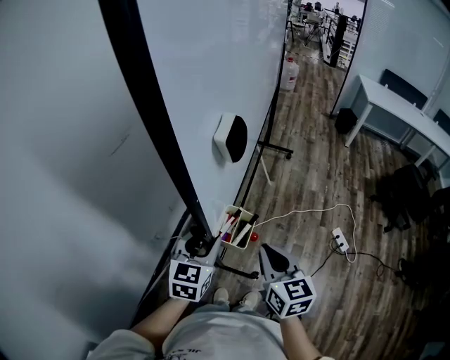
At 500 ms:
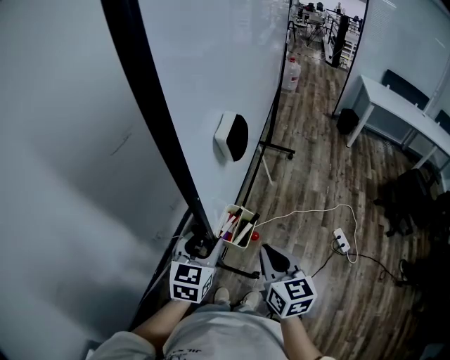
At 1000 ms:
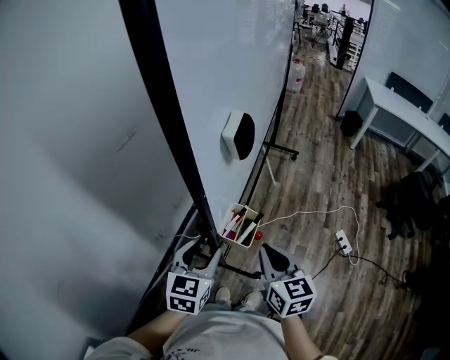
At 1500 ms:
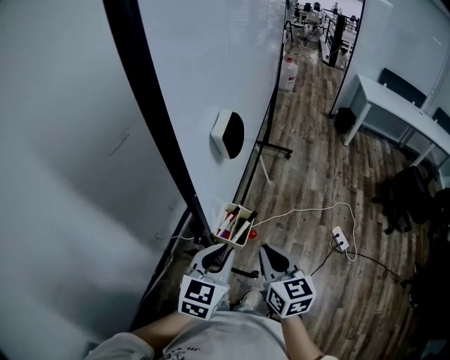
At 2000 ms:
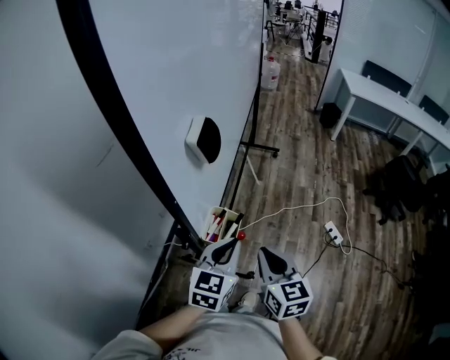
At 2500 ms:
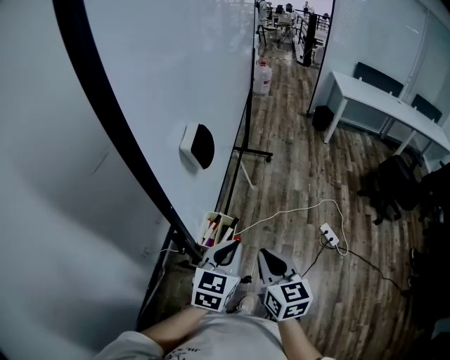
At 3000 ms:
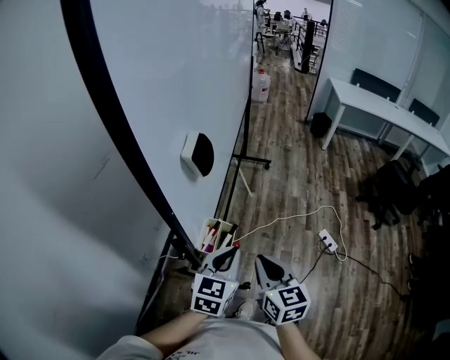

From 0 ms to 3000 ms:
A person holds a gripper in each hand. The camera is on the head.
From 0 ms to 1500 ms: The left gripper moves backward and to the right, about 10 cm, and closes.
From 1500 ms to 3000 ms: The left gripper moves to the right, about 5 cm.

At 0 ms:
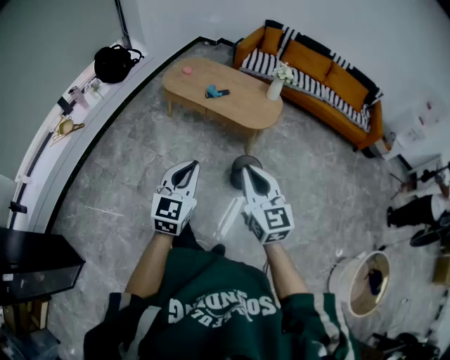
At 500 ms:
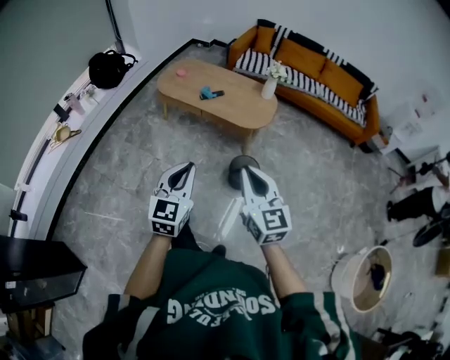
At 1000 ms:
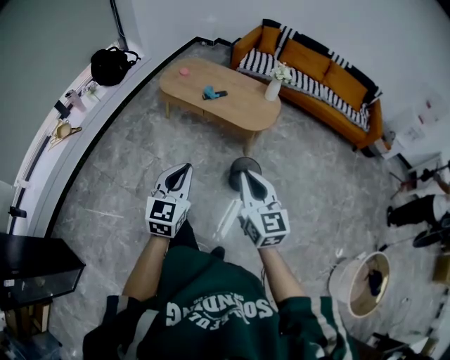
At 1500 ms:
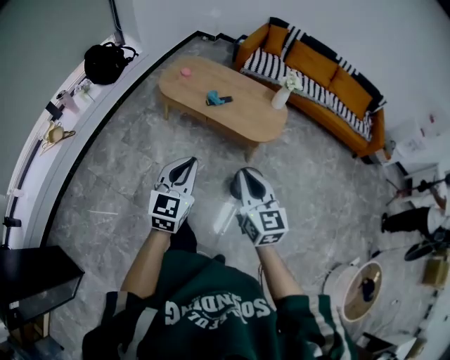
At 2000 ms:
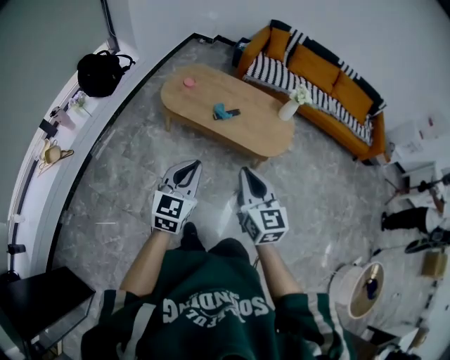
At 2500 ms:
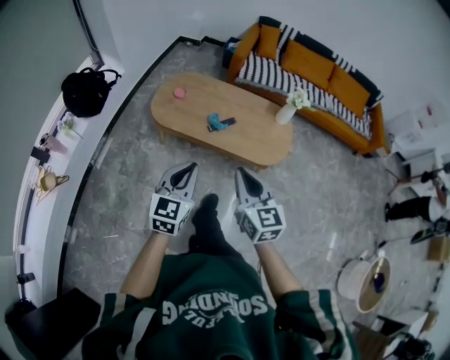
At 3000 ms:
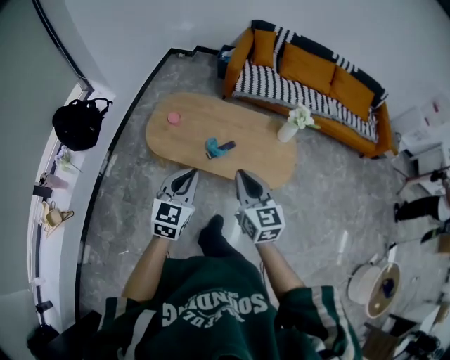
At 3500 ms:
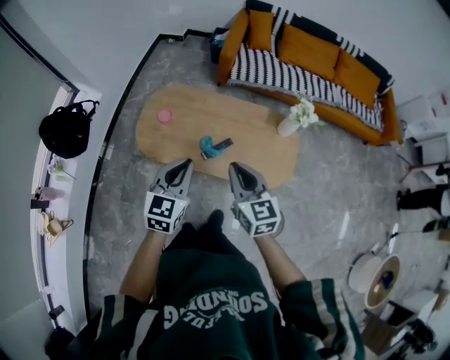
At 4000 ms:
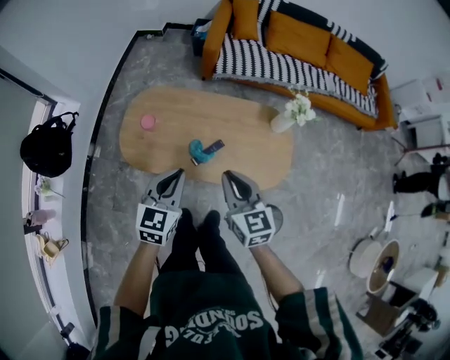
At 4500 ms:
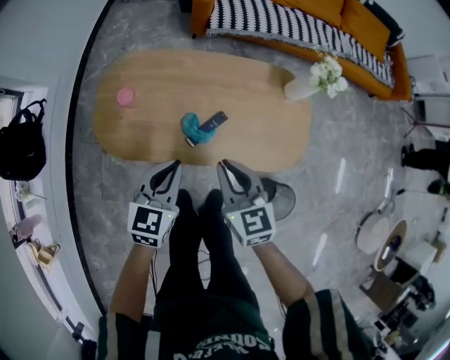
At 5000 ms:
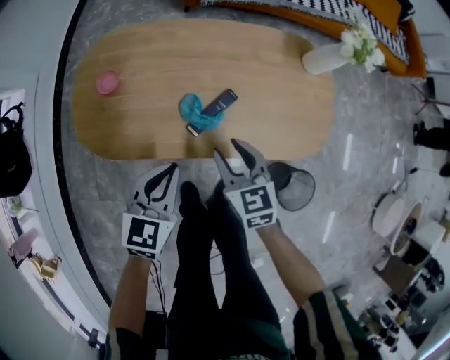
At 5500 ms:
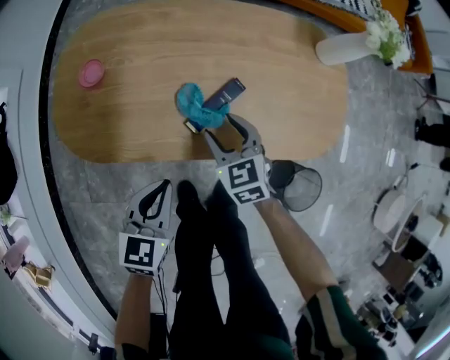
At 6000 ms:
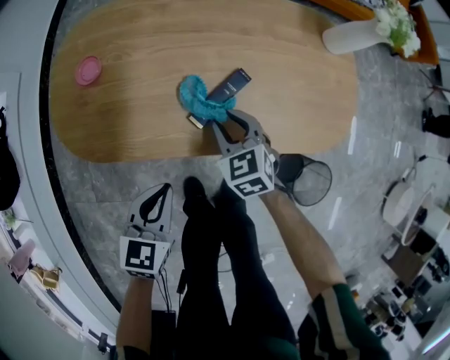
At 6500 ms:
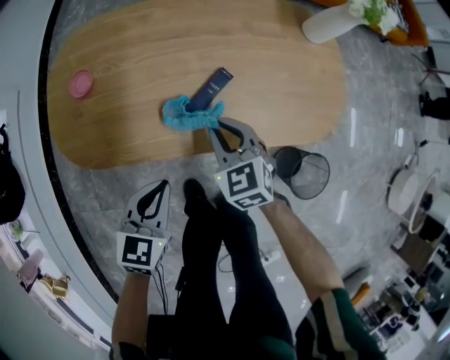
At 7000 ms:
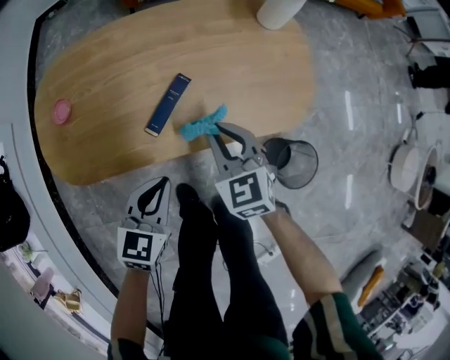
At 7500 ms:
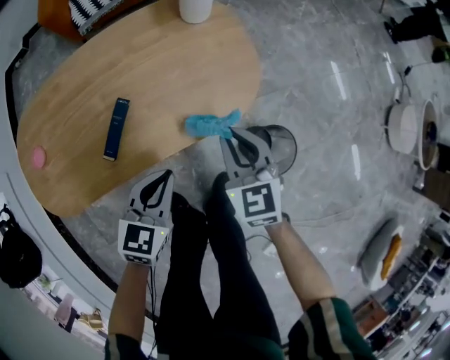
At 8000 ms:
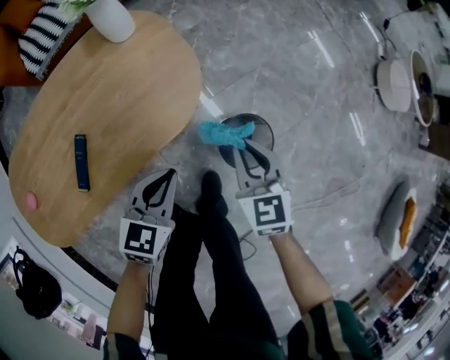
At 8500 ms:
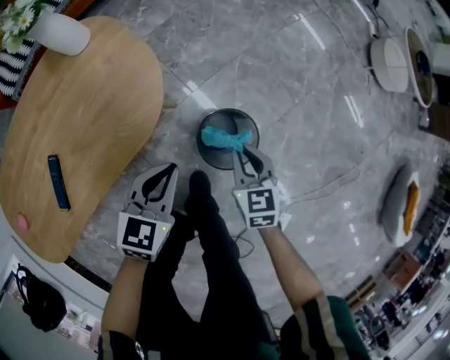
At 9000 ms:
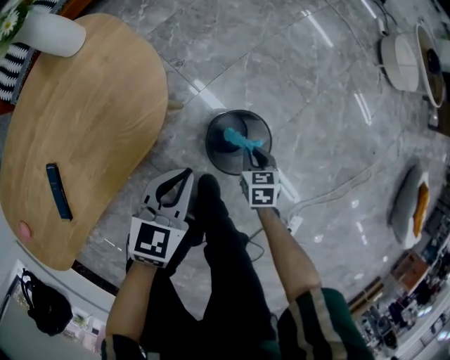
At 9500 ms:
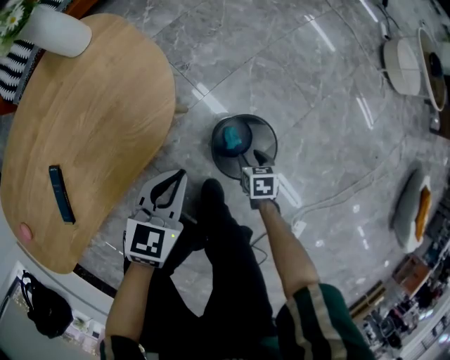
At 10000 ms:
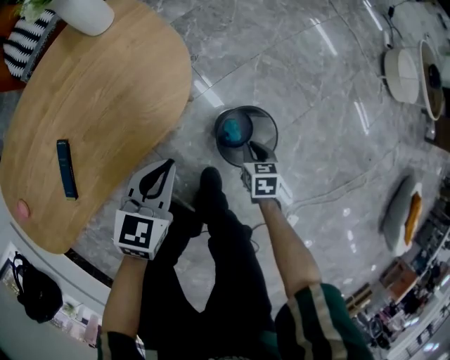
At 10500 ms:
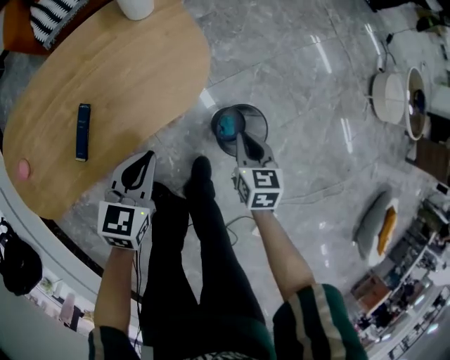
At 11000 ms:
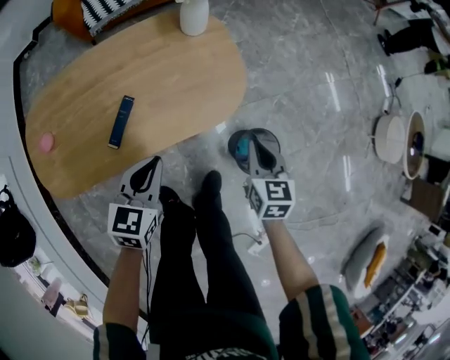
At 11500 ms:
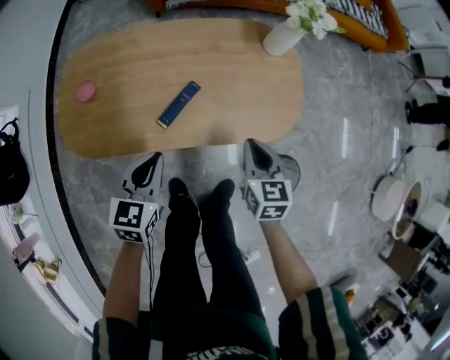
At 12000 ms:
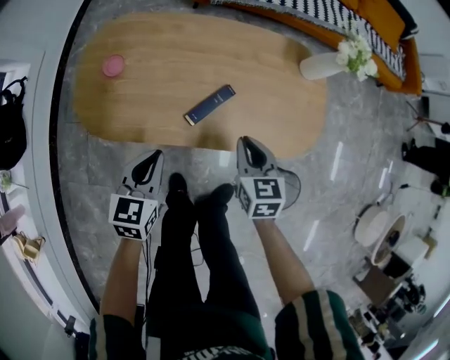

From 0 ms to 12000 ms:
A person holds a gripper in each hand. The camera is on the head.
From 0 ms to 2000 ms: The two grippers go roughly 30 cm forward and to the left.
From 2000 ms to 4000 ms: Both grippers travel together forward, about 40 cm.
From 4000 ms to 6000 ms: Both grippers move downward, about 40 cm. The right gripper turns by some 30 degrees, and opens its fingers. The left gripper turns by roughly 20 degrees.
From 6000 ms to 8000 ms: The right gripper moves about 50 cm, and turns by approximately 50 degrees. The left gripper shifts by approximately 40 cm, and changes its angle by about 40 degrees.
From 8000 ms to 10000 ms: The left gripper moves downward, roughly 5 cm. The right gripper is displaced downward and to the right by some 30 cm, changes its angle by some 40 degrees, and opens, then closes once more.
From 10000 ms to 12000 ms: Both grippers are carried approximately 40 cm. The right gripper turns by about 50 degrees. Meanwhile the left gripper turns by some 50 degrees.

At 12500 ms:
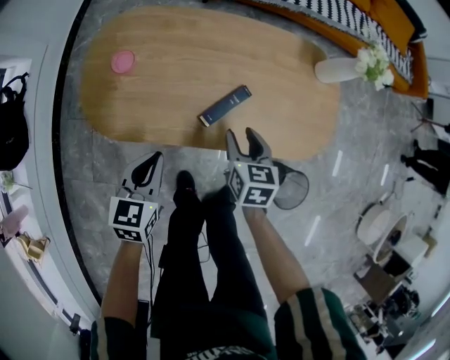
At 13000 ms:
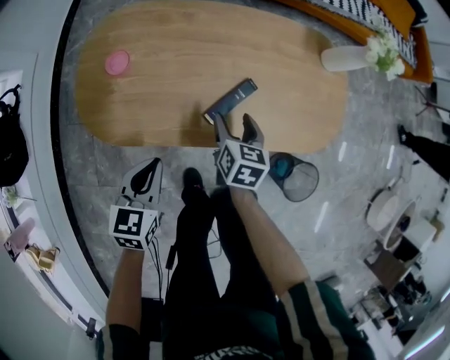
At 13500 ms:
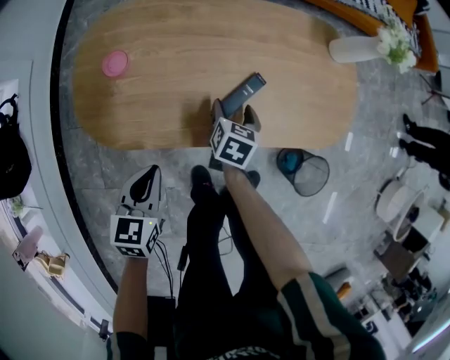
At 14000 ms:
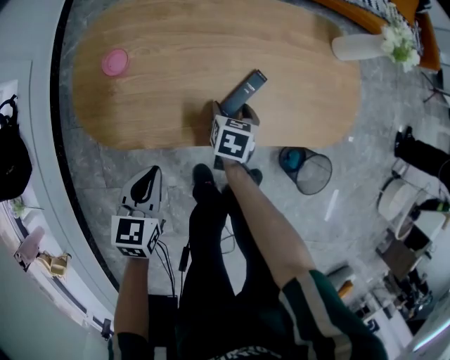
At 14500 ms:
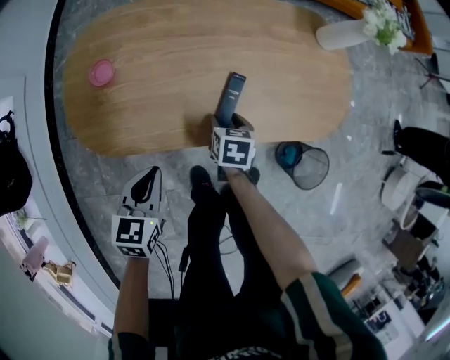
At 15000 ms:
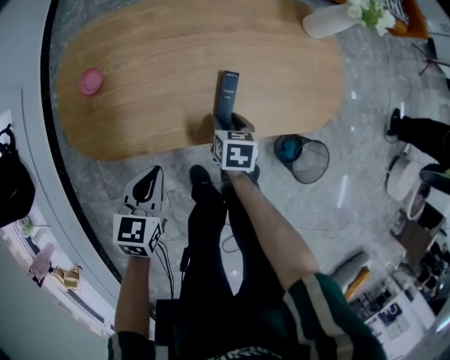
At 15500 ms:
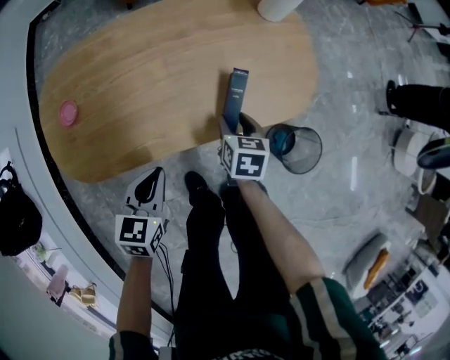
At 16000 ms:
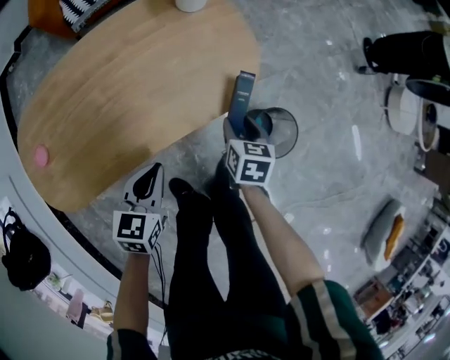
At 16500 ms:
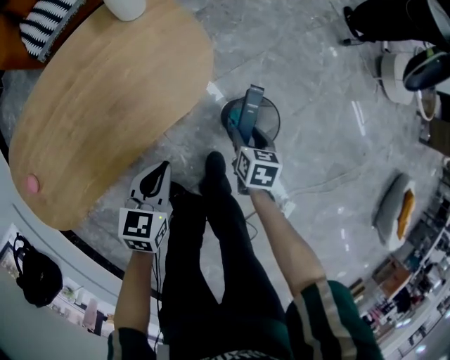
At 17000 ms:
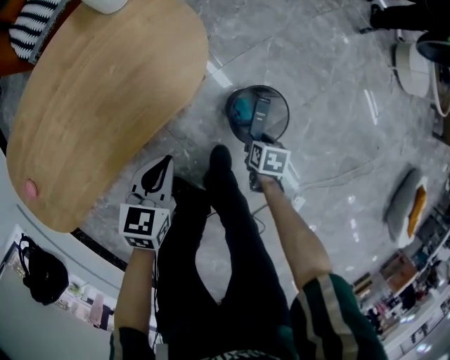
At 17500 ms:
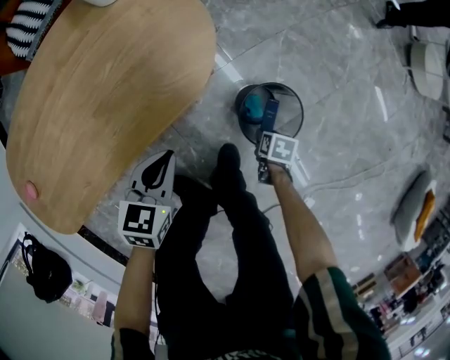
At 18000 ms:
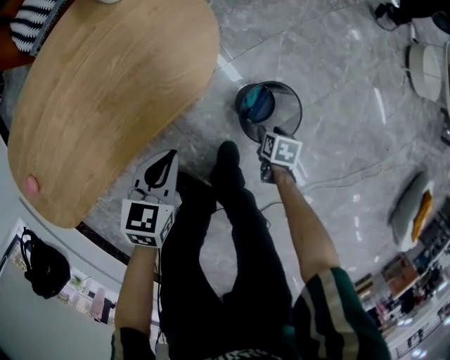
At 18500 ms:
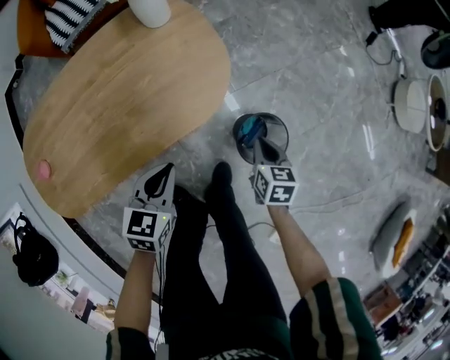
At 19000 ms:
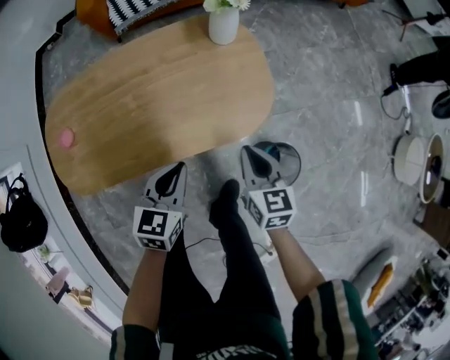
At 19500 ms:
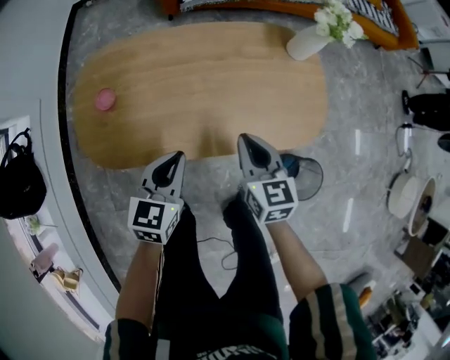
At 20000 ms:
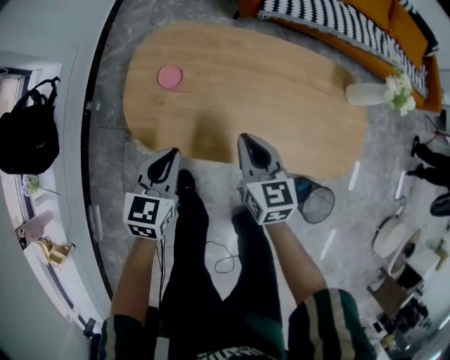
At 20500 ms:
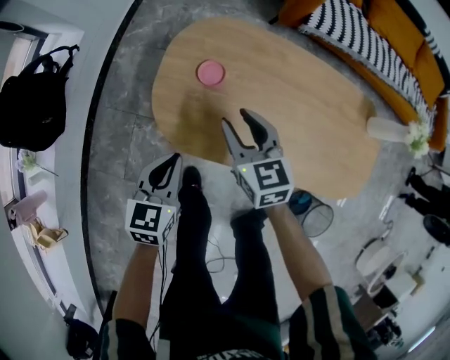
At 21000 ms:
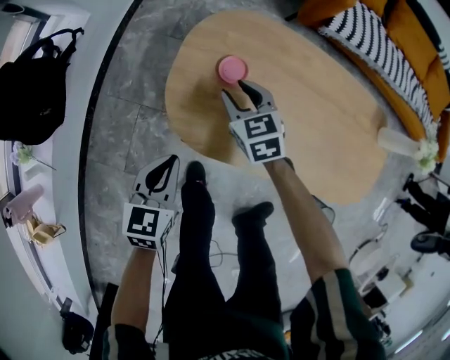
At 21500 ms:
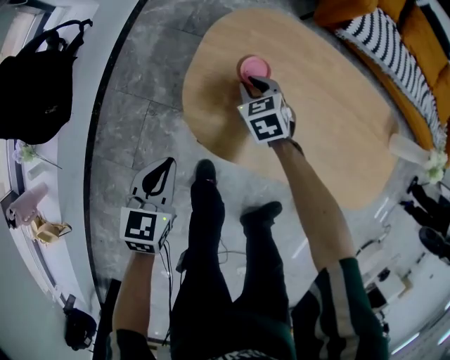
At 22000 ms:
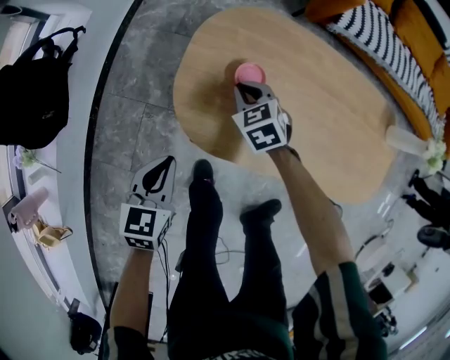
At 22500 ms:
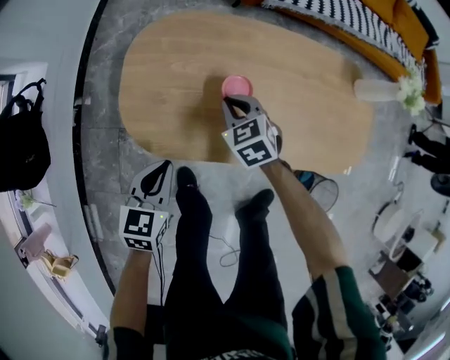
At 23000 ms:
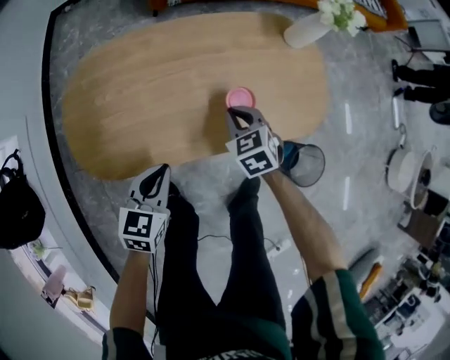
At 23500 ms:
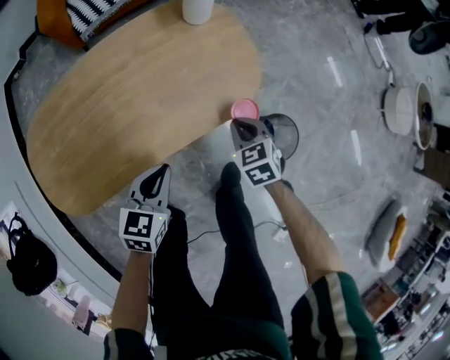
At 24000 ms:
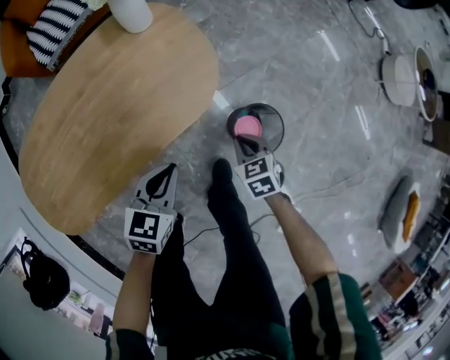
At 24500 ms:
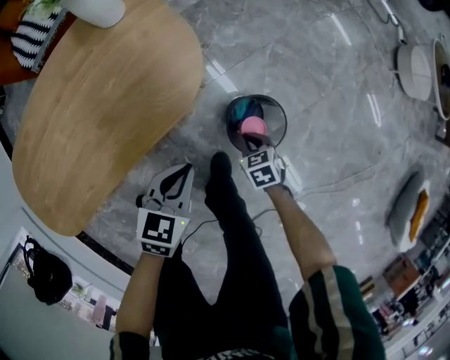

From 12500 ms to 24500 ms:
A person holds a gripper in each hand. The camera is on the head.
From 12500 ms to 14500 ms: The right gripper is displaced downward by some 15 cm, and changes its angle by roughly 20 degrees. The left gripper ends up approximately 5 cm from where it was.
From 14500 ms to 16500 ms: The right gripper shifts by about 50 cm, and turns by some 40 degrees, while the left gripper ends up roughly 35 cm from where it was, and turns by approximately 40 degrees.
From 16500 ms to 18500 ms: The right gripper travels downward and back again, approximately 20 cm each way, and closes up; the left gripper travels downward and back again, some 10 cm each way.
From 18500 ms to 20500 ms: Both grippers are carried some 60 cm. The left gripper rotates approximately 50 degrees, while the right gripper swivels about 70 degrees, and opens its fingers.
From 20500 ms to 22500 ms: The right gripper travels downward and to the right by some 10 cm, changes its angle by approximately 20 degrees, and closes its fingers. The left gripper reaches approximately 10 cm to the left, then returns.
From 22500 ms to 24500 ms: Both grippers are carried roughly 60 cm. The right gripper rolls clockwise, seen from behind, by approximately 50 degrees. The left gripper swivels about 50 degrees.
